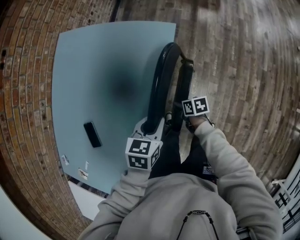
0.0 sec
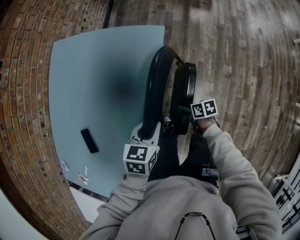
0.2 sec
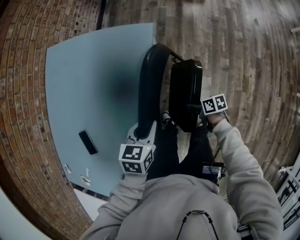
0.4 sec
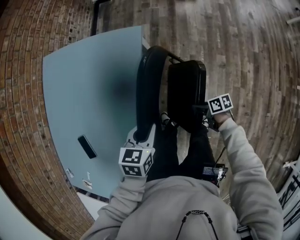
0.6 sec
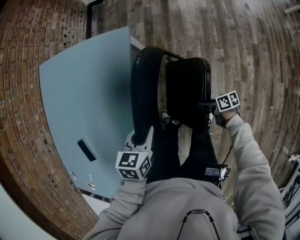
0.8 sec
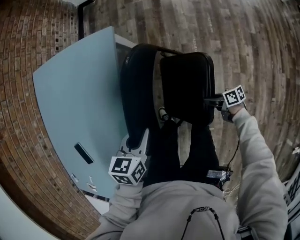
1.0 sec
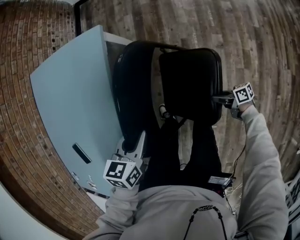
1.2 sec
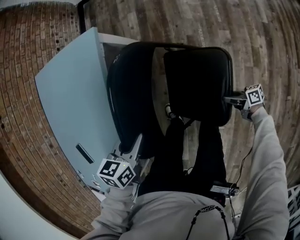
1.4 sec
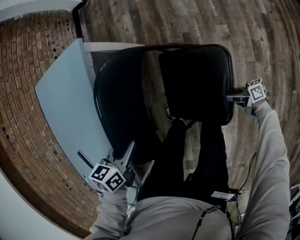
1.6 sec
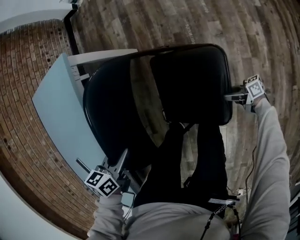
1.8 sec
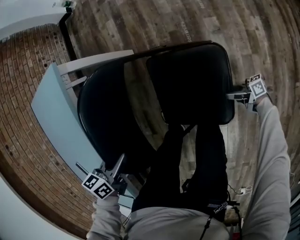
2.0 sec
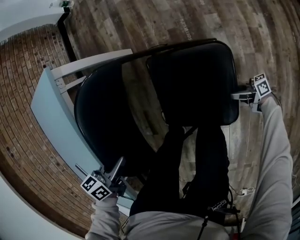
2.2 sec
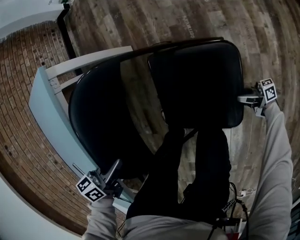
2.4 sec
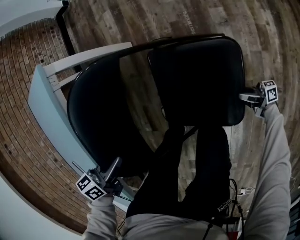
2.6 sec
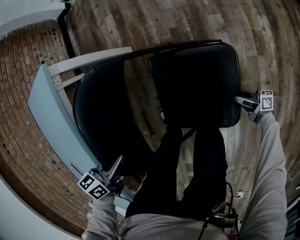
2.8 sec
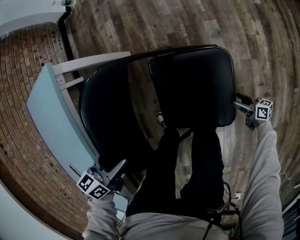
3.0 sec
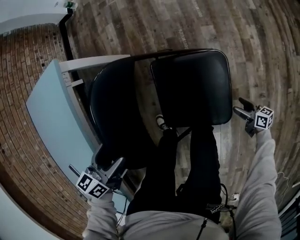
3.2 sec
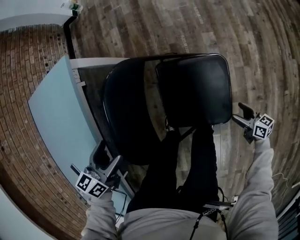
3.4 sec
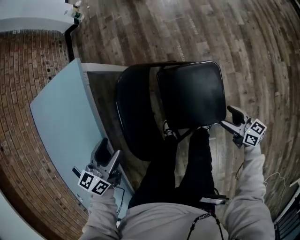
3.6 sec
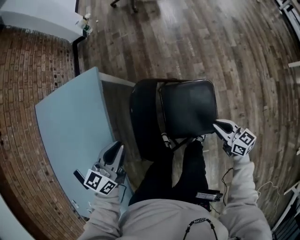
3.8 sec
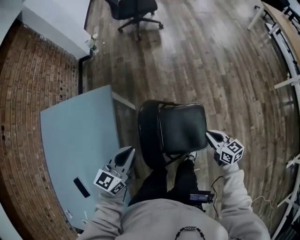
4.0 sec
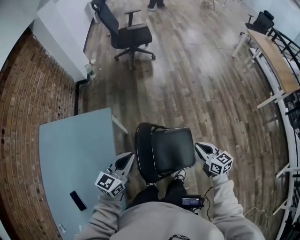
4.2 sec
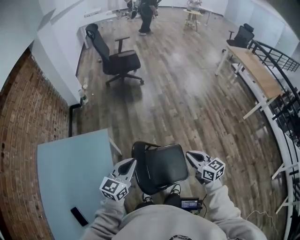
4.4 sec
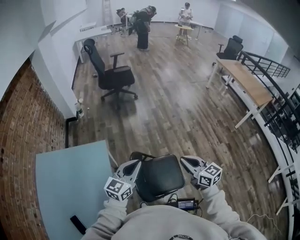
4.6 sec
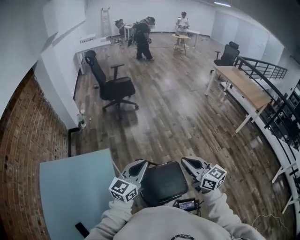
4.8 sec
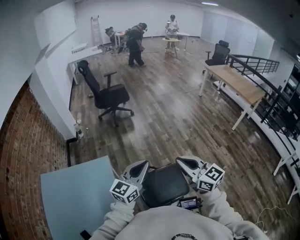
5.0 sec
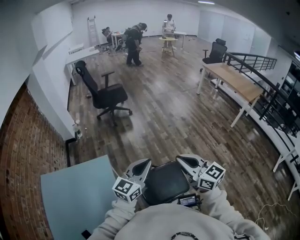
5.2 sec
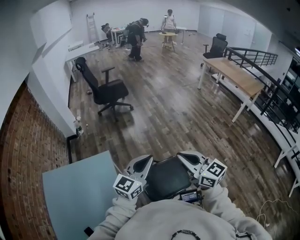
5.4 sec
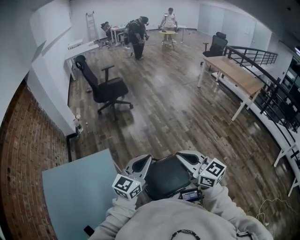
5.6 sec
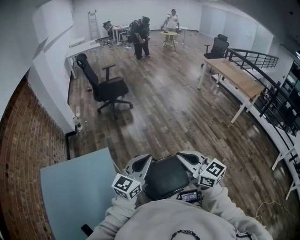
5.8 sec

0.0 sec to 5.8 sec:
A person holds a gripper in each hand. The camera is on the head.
0.0 sec to 1.4 sec: The left gripper moves to the right, downward and backward, approximately 20 cm. The right gripper is displaced to the right, backward and downward by roughly 40 cm, and tilts its fingers some 30 degrees upward.
1.4 sec to 2.8 sec: The right gripper heads downward, covering some 20 cm, and rotates some 20 degrees. The left gripper goes about 10 cm downward.
2.8 sec to 4.4 sec: The right gripper is displaced upward by some 70 cm, rotates around the line of its fingers by roughly 60 degrees, counterclockwise from behind, and closes up. The left gripper shifts about 40 cm upward, tips its fingers upward by about 40 degrees, and opens, then closes again.
4.4 sec to 5.8 sec: The right gripper heads upward, to the left and backward, covering roughly 25 cm, while the left gripper is displaced upward by about 10 cm, and rotates about 20 degrees.

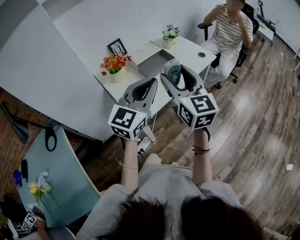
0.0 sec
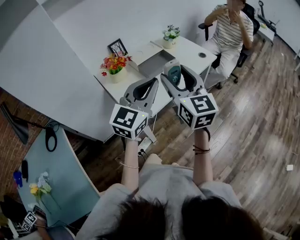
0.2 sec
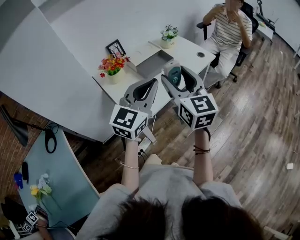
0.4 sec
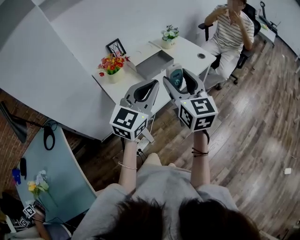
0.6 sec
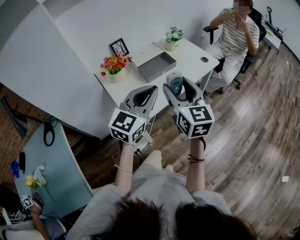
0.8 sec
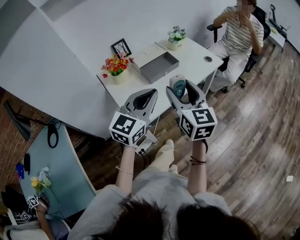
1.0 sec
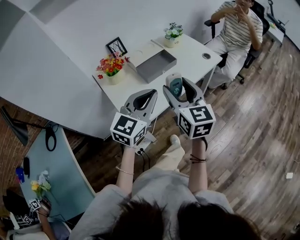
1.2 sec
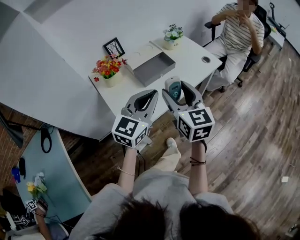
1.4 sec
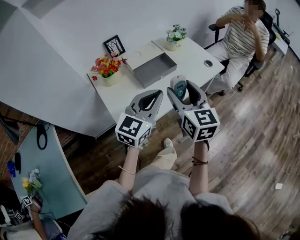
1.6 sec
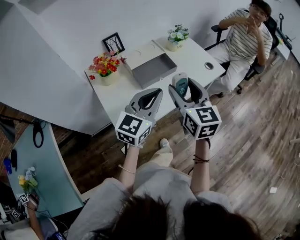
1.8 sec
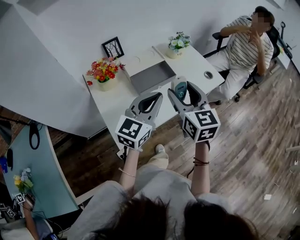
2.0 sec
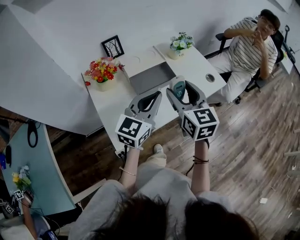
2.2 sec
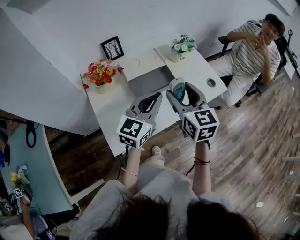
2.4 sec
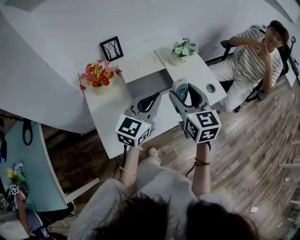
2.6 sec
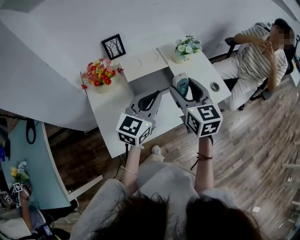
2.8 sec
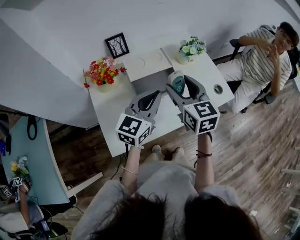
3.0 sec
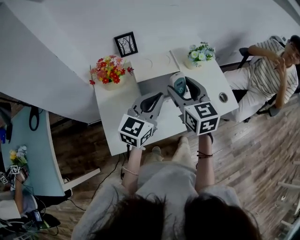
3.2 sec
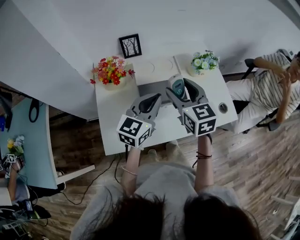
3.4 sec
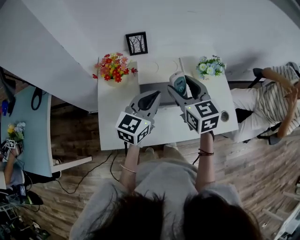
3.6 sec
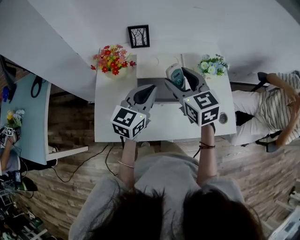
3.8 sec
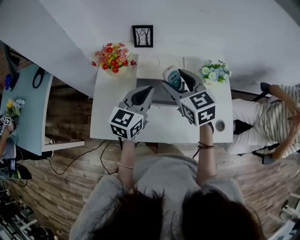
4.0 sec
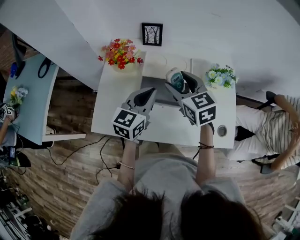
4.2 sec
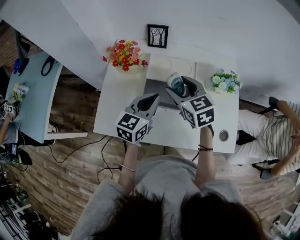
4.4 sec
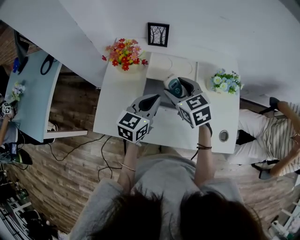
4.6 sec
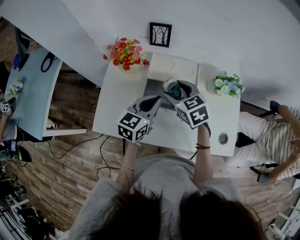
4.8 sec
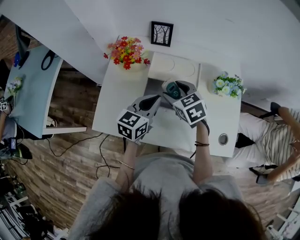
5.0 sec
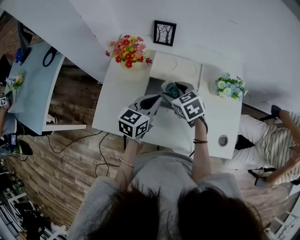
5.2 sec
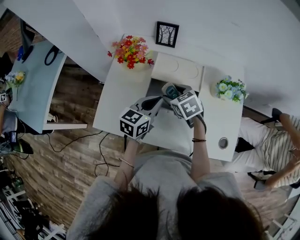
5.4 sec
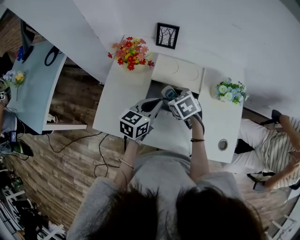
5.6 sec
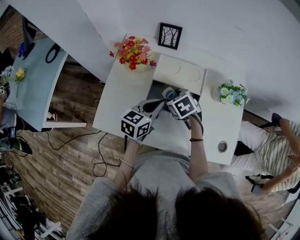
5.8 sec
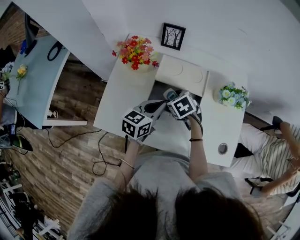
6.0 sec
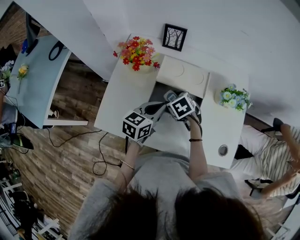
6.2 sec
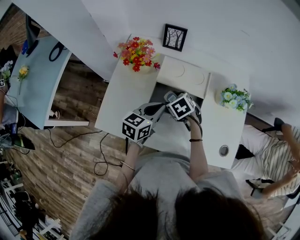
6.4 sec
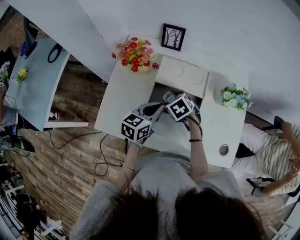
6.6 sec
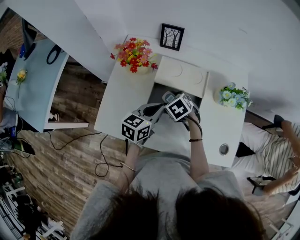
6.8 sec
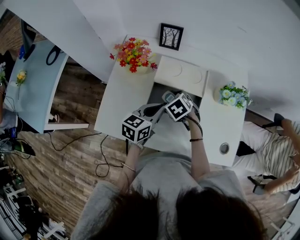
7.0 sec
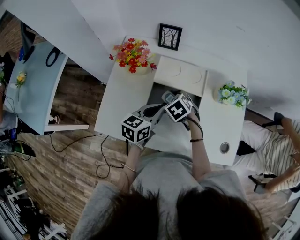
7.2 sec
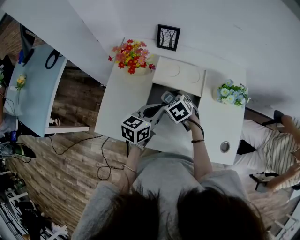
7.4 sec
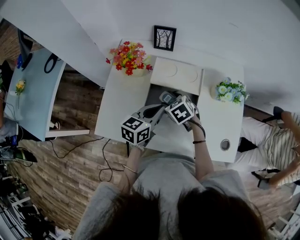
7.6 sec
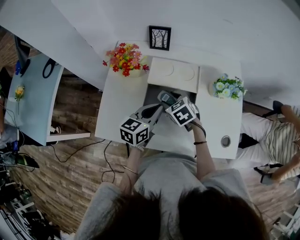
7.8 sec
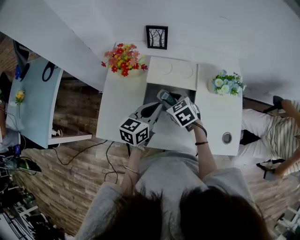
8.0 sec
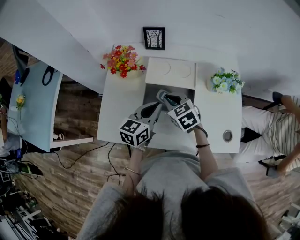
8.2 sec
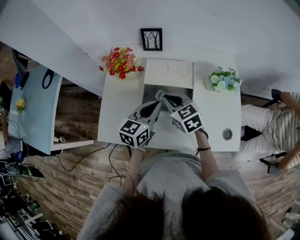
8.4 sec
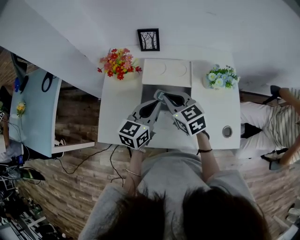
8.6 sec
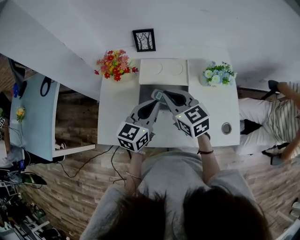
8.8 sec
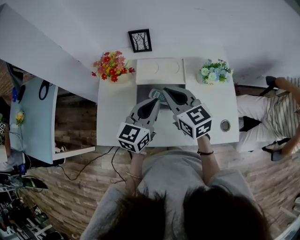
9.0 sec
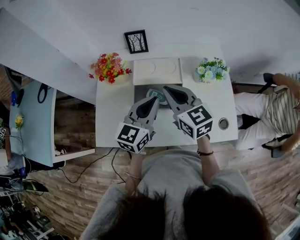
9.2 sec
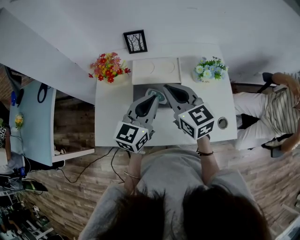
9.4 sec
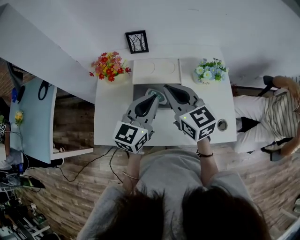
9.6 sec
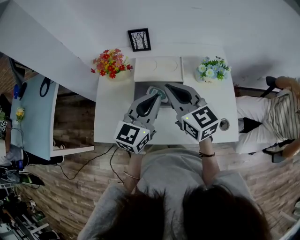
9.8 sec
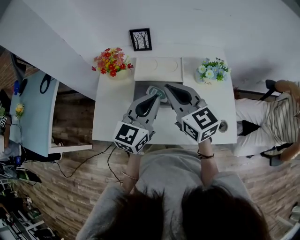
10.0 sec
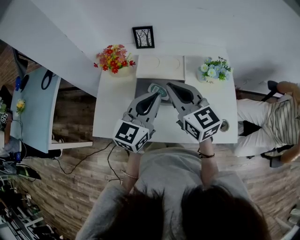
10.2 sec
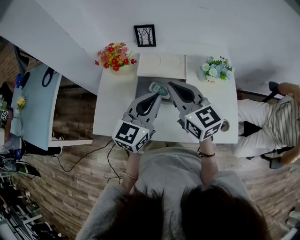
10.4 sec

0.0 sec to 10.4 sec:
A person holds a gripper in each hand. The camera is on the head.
0.0 sec to 1.4 sec: Both grippers travel together forward and downward, roughly 10 cm.
1.4 sec to 3.0 sec: The two grippers go approximately 20 cm forward.
3.0 sec to 4.4 sec: The left gripper changes place by approximately 10 cm, and changes its angle by roughly 30 degrees. Meanwhile the right gripper shifts by about 15 cm, and changes its angle by about 40 degrees.
4.4 sec to 6.0 sec: The left gripper is displaced downward by approximately 5 cm, while the right gripper moves downward, some 15 cm, and tips its fingers downward by roughly 30 degrees.
6.0 sec to 7.4 sec: There are only small adjustments of the grippers.
7.4 sec to 9.0 sec: The right gripper shifts about 20 cm upward, tilts its fingers approximately 40 degrees upward, and closes its fingers, while the left gripper shifts some 10 cm upward.
9.0 sec to 10.4 sec: The right gripper shifts by approximately 5 cm. Meanwhile the left gripper shifts by some 5 cm.

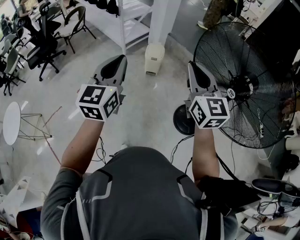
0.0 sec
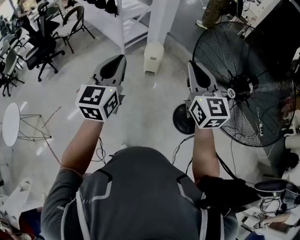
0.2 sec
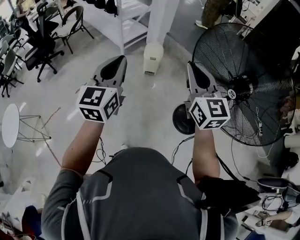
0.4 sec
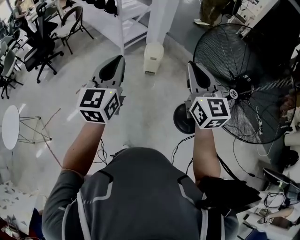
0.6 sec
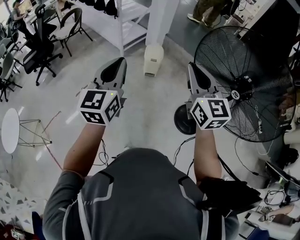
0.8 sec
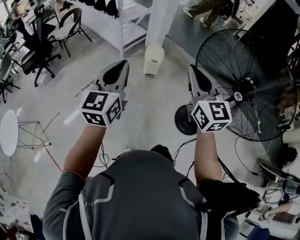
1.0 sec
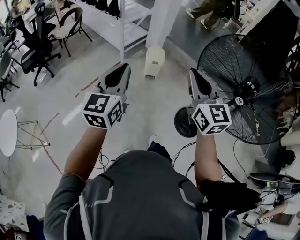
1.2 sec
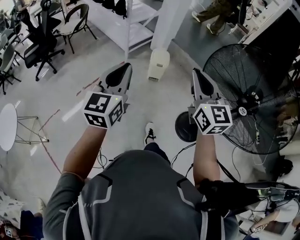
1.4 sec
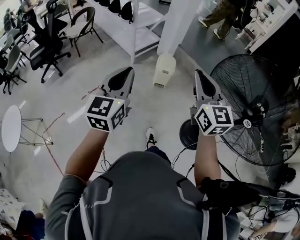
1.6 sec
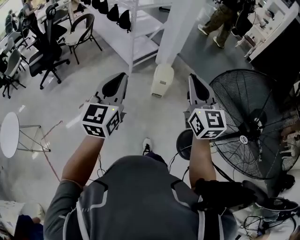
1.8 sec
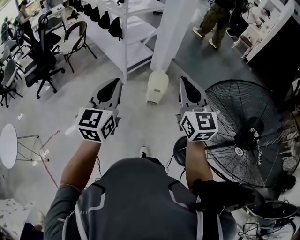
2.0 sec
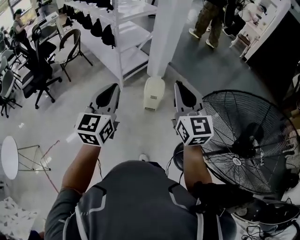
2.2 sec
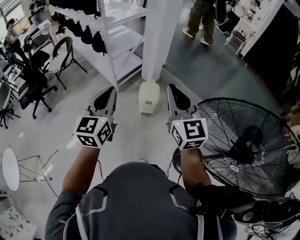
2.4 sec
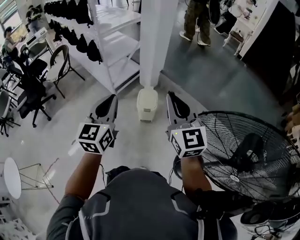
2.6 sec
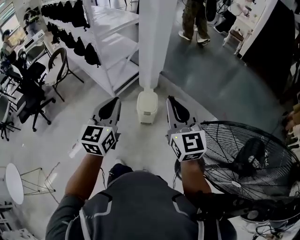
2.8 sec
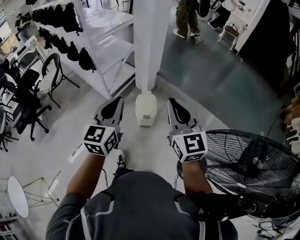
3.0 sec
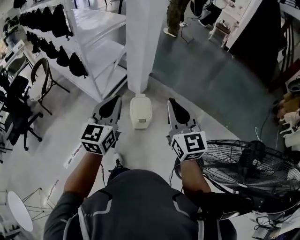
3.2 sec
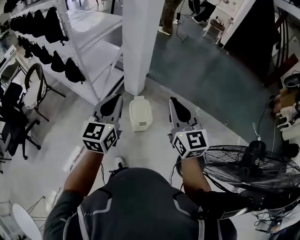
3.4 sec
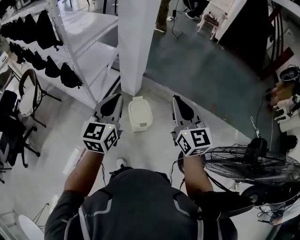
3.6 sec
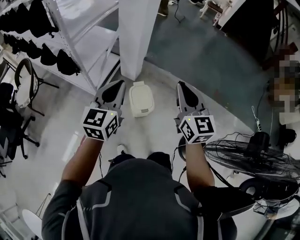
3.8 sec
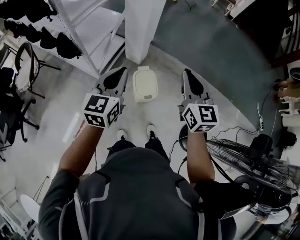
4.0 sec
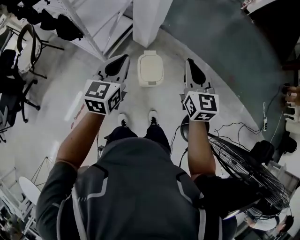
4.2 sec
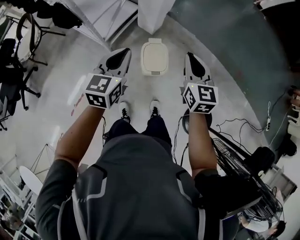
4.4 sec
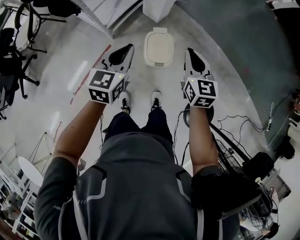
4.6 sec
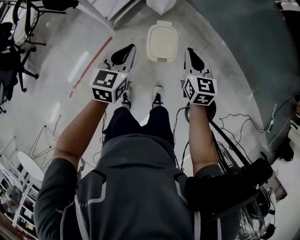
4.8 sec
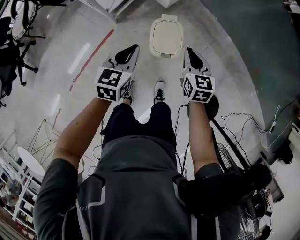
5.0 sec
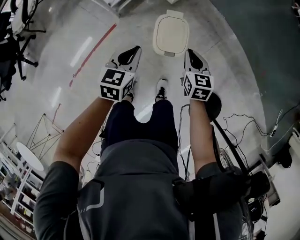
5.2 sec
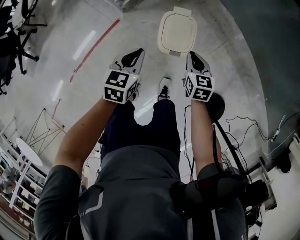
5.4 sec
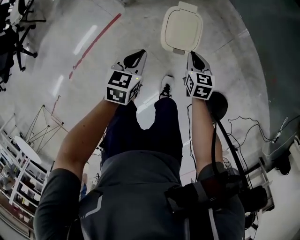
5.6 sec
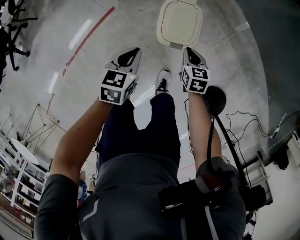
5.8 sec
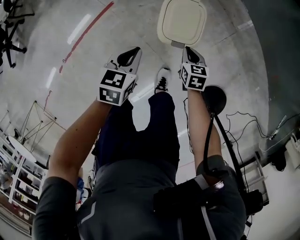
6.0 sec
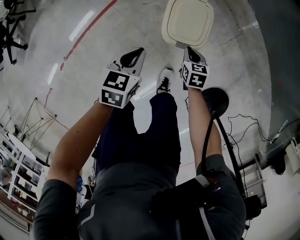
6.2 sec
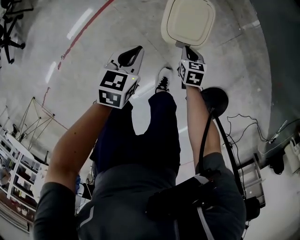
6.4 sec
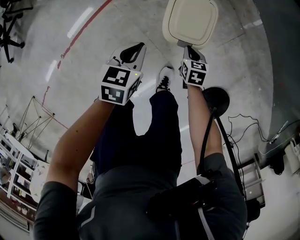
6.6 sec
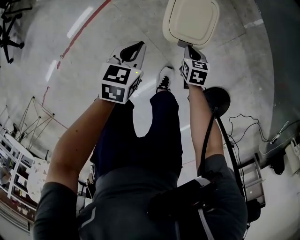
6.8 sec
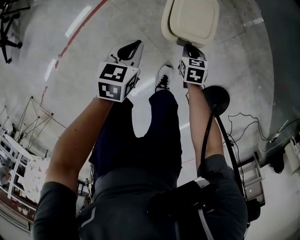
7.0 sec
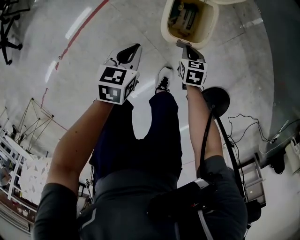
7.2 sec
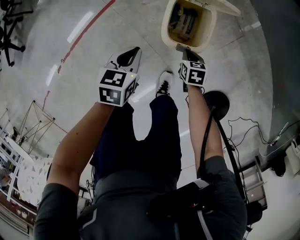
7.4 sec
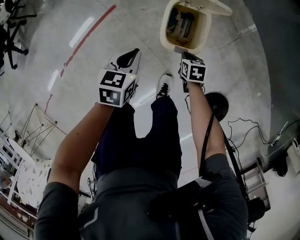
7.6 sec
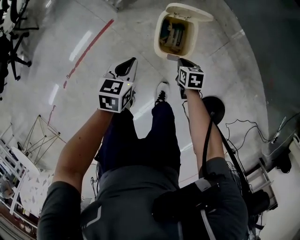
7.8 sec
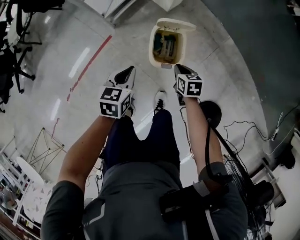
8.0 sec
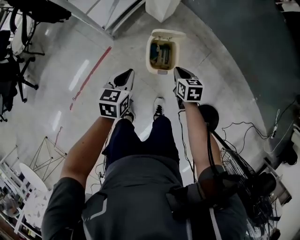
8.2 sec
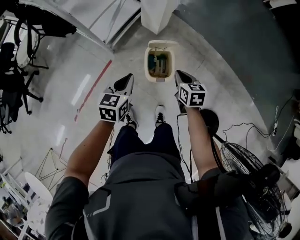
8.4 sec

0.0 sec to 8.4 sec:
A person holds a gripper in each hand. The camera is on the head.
0.0 sec to 1.4 sec: Both grippers travel together to the left, roughly 10 cm.
1.4 sec to 2.8 sec: The grippers both shift forward by about 35 cm.
2.8 sec to 4.2 sec: The left gripper moves forward, downward and to the left, some 35 cm. The right gripper is displaced forward and downward by approximately 30 cm, and rotates some 20 degrees.
4.2 sec to 5.6 sec: Both grippers travel together downward, roughly 40 cm. The left gripper turns by approximately 30 degrees, while the right gripper angles its fingers downward, by approximately 40 degrees.
5.6 sec to 7.0 sec: The two grippers go roughly 15 cm downward.
7.0 sec to 8.4 sec: Both grippers travel together upward, roughly 30 cm. The right gripper swivels roughly 20 degrees.
